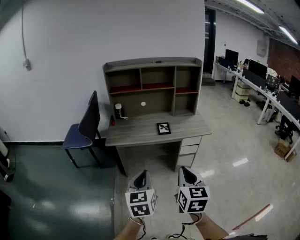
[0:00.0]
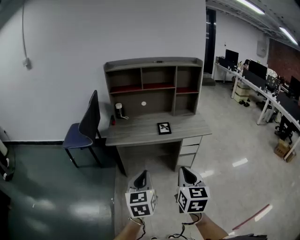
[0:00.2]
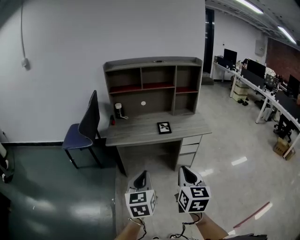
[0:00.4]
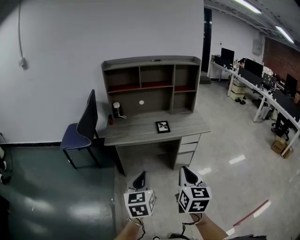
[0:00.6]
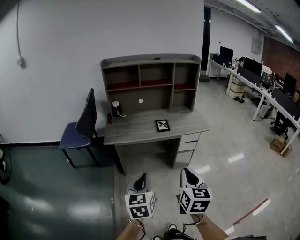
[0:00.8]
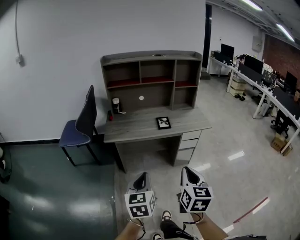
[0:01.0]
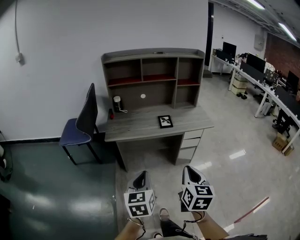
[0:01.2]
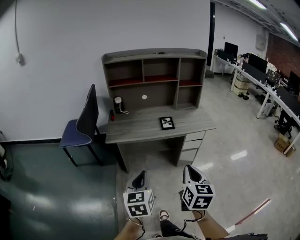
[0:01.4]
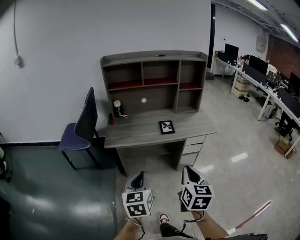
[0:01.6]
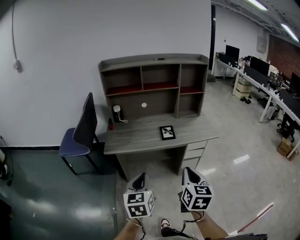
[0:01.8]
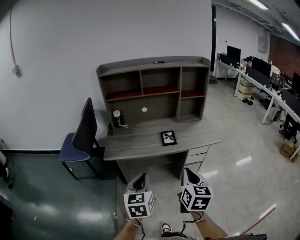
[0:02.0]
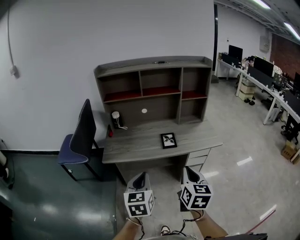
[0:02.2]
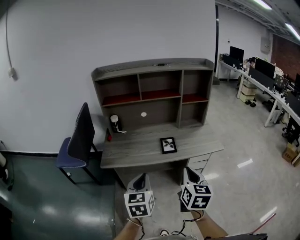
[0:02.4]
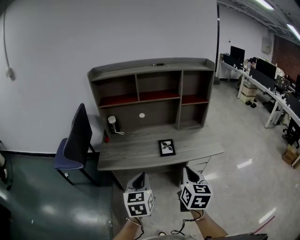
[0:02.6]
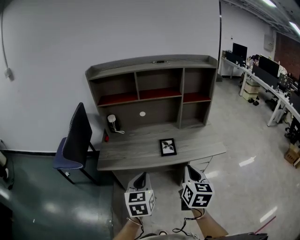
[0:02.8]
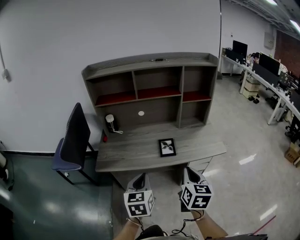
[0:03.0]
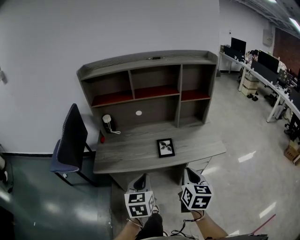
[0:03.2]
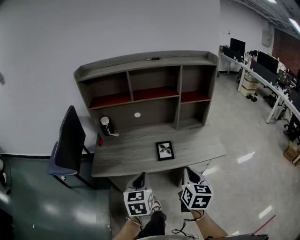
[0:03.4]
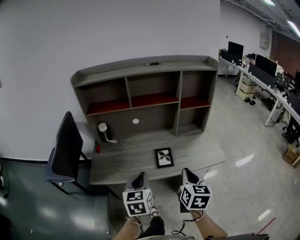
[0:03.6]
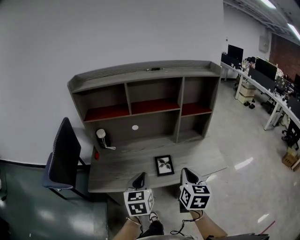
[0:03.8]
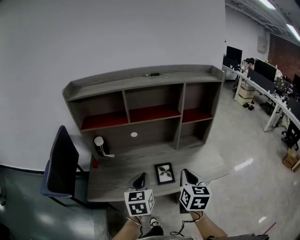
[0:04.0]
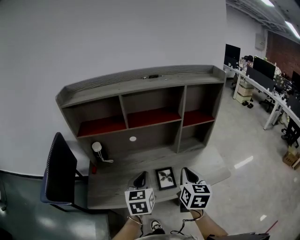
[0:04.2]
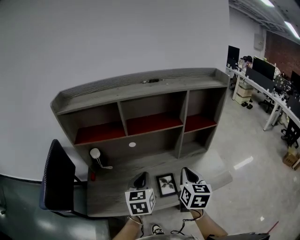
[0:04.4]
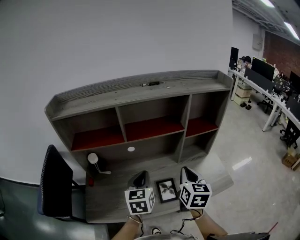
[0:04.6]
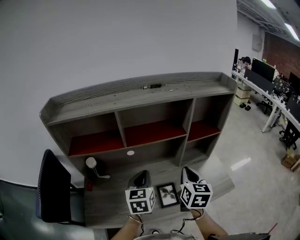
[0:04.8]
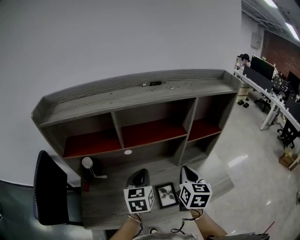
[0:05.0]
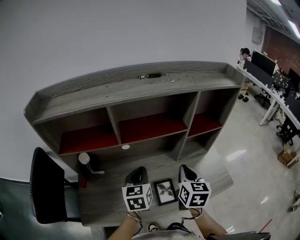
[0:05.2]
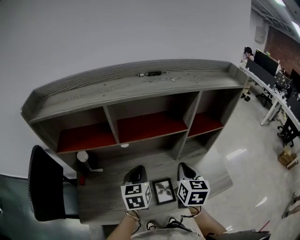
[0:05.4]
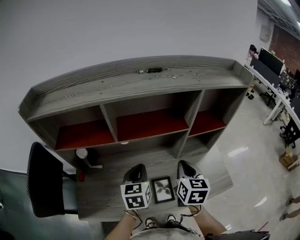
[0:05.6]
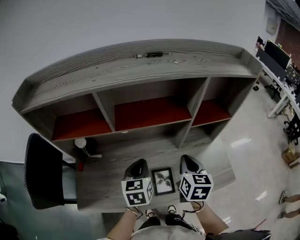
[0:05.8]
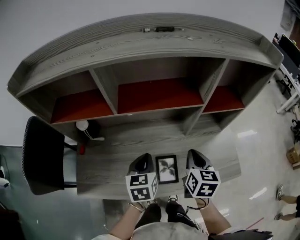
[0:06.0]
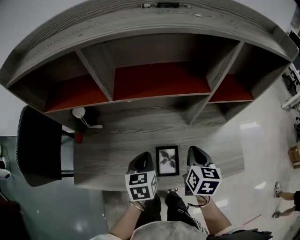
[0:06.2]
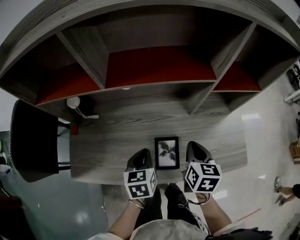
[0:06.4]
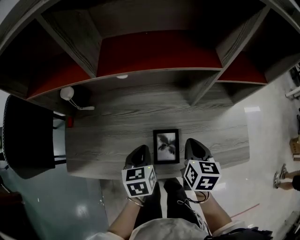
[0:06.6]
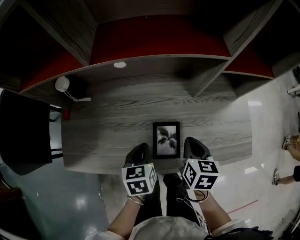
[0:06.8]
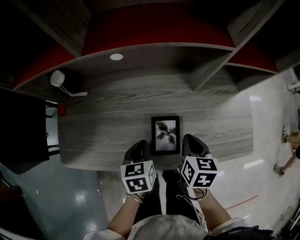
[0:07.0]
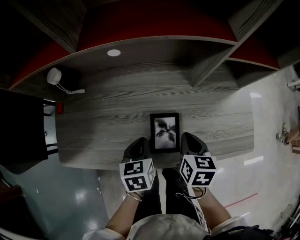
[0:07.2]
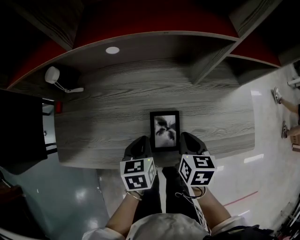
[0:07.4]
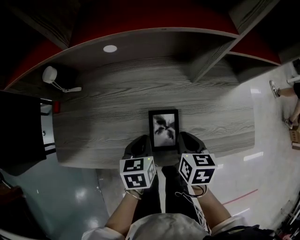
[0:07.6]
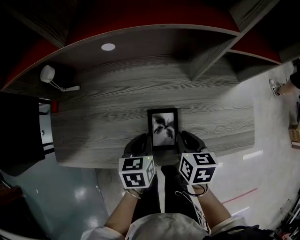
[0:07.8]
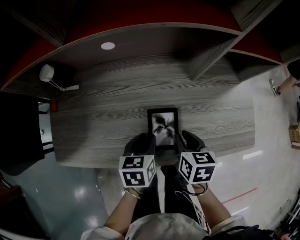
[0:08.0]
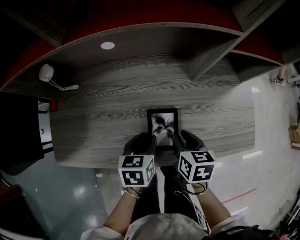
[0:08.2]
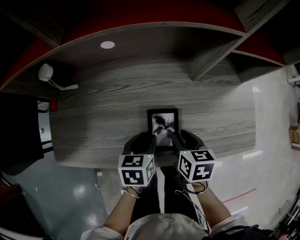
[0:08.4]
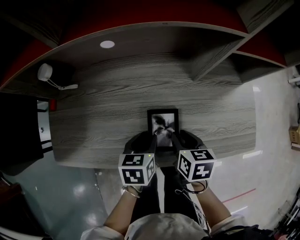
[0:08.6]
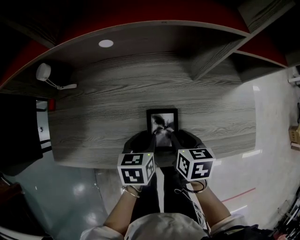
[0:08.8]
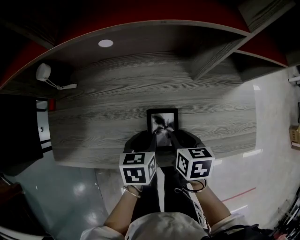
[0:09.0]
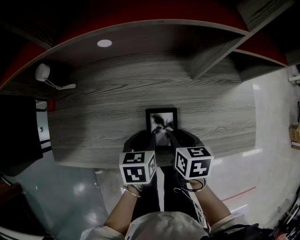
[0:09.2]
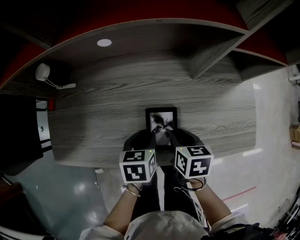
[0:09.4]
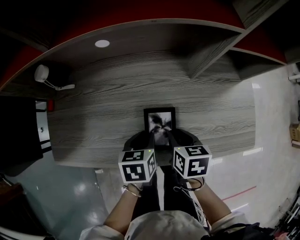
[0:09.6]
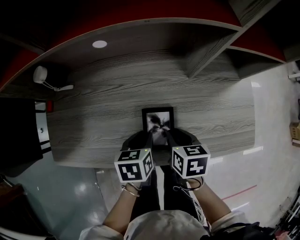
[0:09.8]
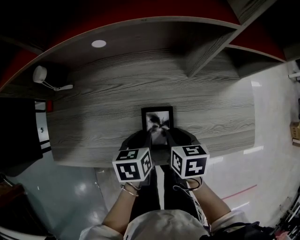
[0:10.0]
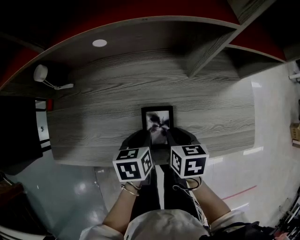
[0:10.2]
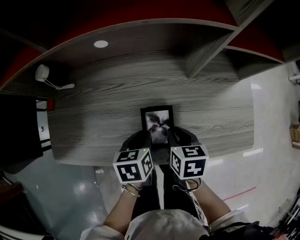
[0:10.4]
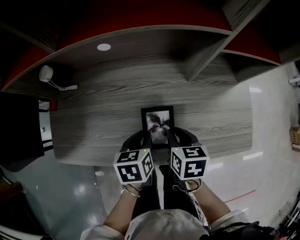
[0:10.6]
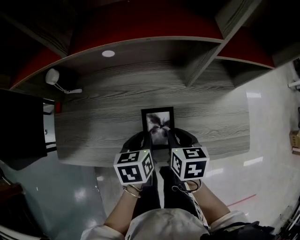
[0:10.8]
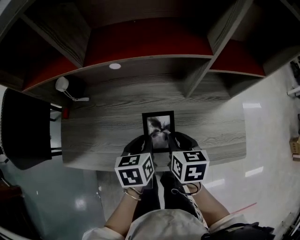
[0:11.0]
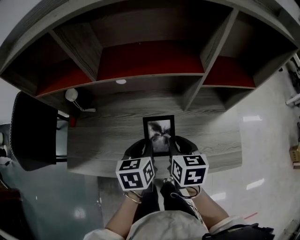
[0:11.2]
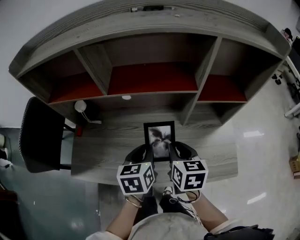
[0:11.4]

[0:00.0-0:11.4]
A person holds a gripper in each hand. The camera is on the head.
0:00.0 to 0:01.4: The right gripper shifts by some 5 cm. Meanwhile the left gripper moves to the left, some 5 cm.
0:01.4 to 0:02.8: The grippers both shift forward by some 25 cm.
0:02.8 to 0:04.2: The grippers both shift forward by some 25 cm.
0:04.2 to 0:05.6: Both grippers move forward, approximately 15 cm.
0:05.6 to 0:07.2: The left gripper goes about 25 cm downward and backward, and rotates roughly 30 degrees; the right gripper heads downward, covering roughly 25 cm, and changes its angle by approximately 30 degrees.
0:07.2 to 0:08.6: The left gripper opens; the right gripper opens its fingers.
0:08.6 to 0:10.0: The grippers stay close to where they were, moving slightly.
0:10.0 to 0:11.4: Both grippers travel together upward, some 20 cm. The left gripper swivels about 20 degrees, while the right gripper swivels some 20 degrees.

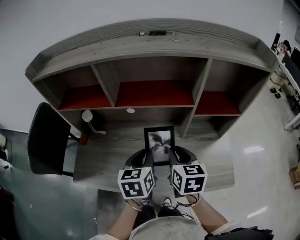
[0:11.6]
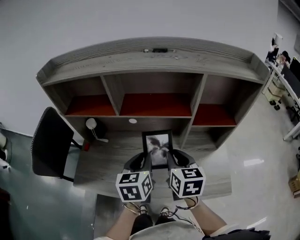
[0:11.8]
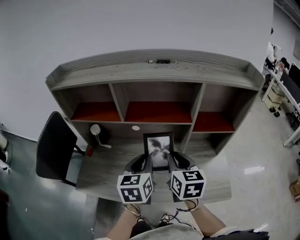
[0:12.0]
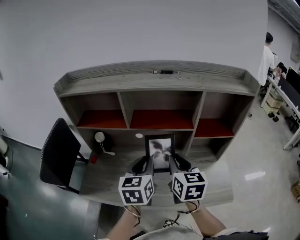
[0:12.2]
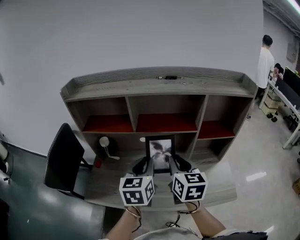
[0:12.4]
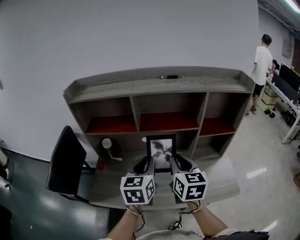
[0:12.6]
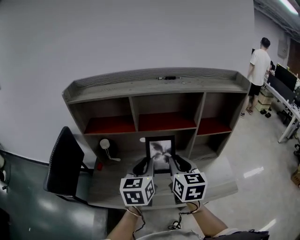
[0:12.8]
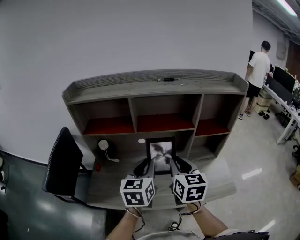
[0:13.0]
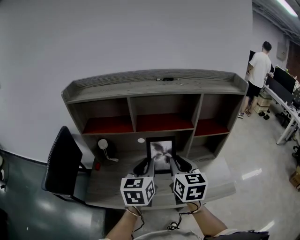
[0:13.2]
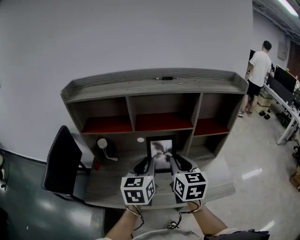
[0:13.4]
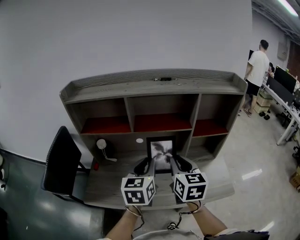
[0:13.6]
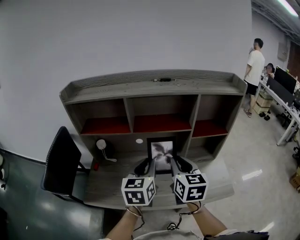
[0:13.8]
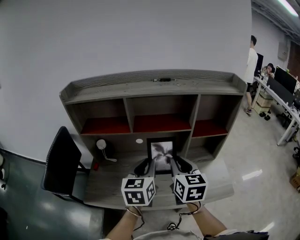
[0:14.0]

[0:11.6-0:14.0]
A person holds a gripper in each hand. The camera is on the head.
0:11.6 to 0:12.8: The two grippers go roughly 15 cm upward and to the left.
0:12.8 to 0:14.0: The grippers move only a little.

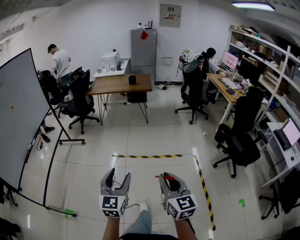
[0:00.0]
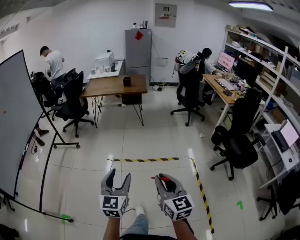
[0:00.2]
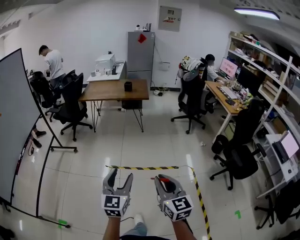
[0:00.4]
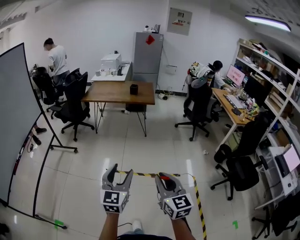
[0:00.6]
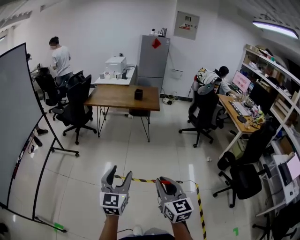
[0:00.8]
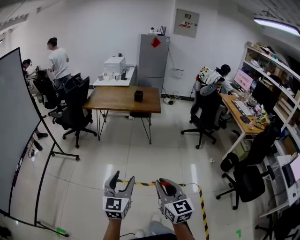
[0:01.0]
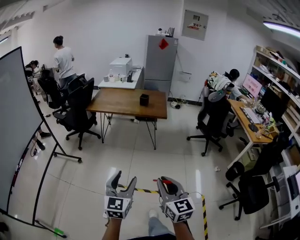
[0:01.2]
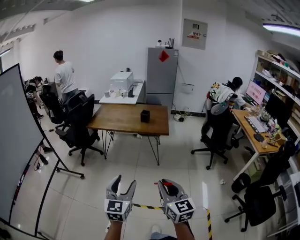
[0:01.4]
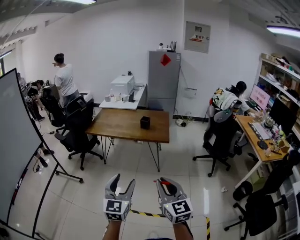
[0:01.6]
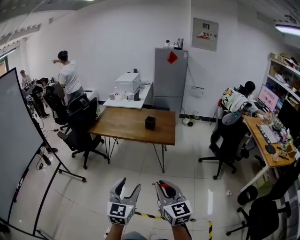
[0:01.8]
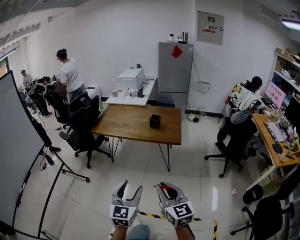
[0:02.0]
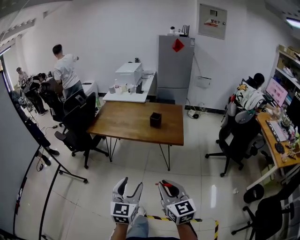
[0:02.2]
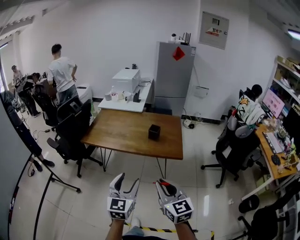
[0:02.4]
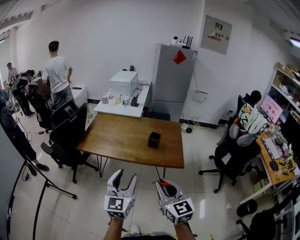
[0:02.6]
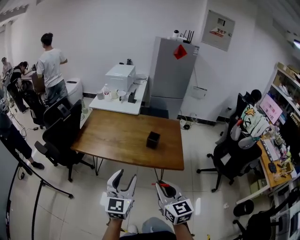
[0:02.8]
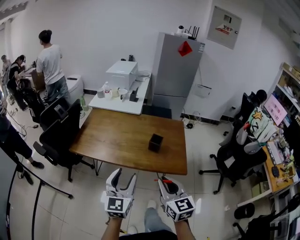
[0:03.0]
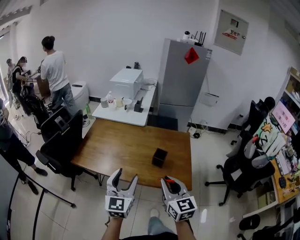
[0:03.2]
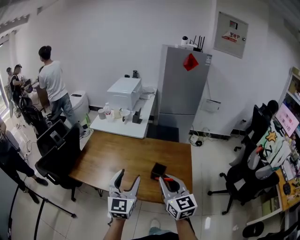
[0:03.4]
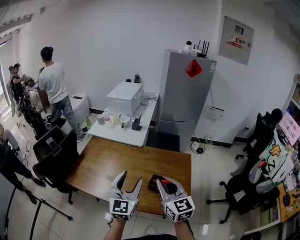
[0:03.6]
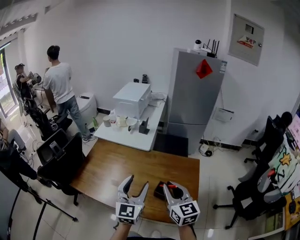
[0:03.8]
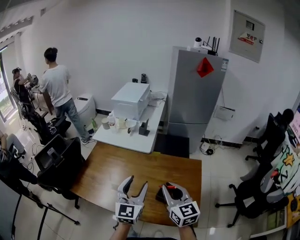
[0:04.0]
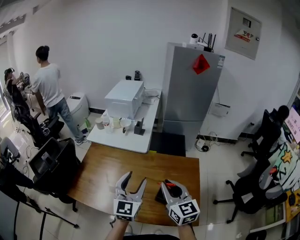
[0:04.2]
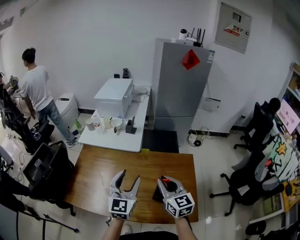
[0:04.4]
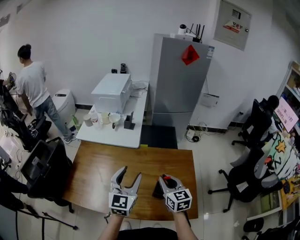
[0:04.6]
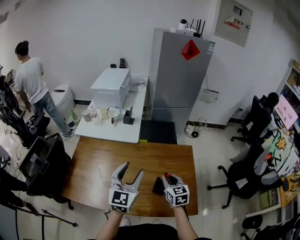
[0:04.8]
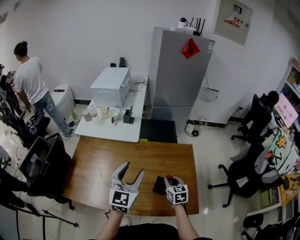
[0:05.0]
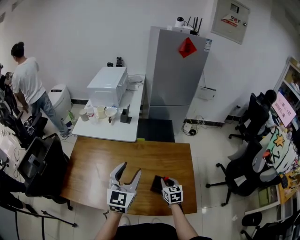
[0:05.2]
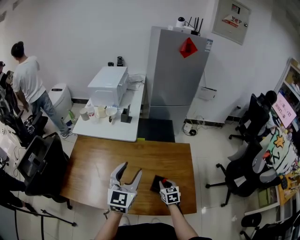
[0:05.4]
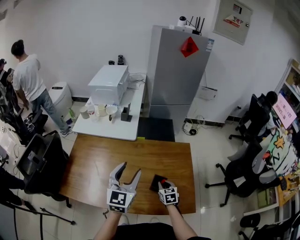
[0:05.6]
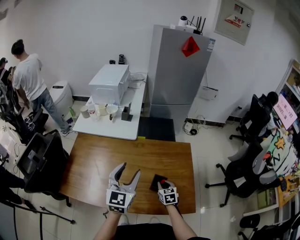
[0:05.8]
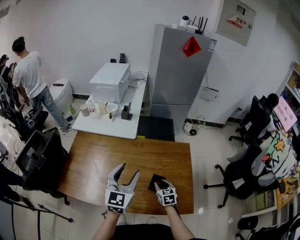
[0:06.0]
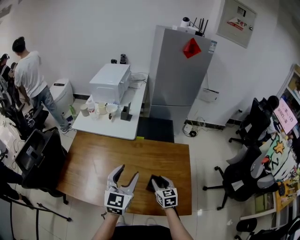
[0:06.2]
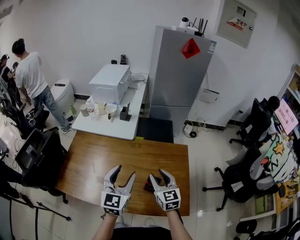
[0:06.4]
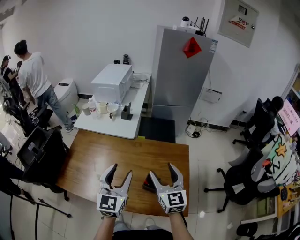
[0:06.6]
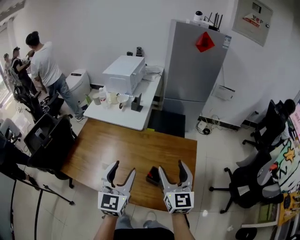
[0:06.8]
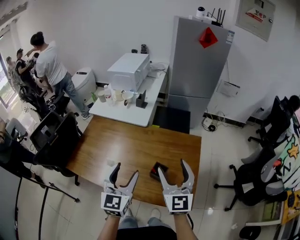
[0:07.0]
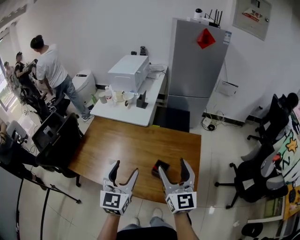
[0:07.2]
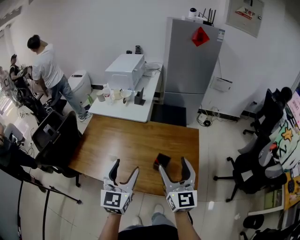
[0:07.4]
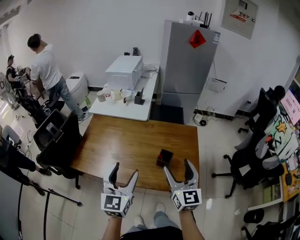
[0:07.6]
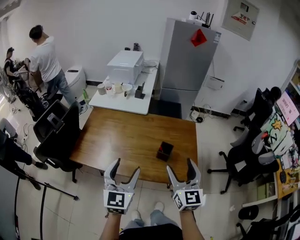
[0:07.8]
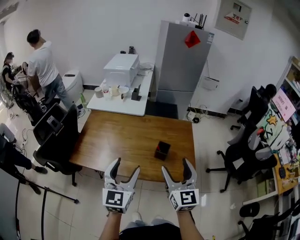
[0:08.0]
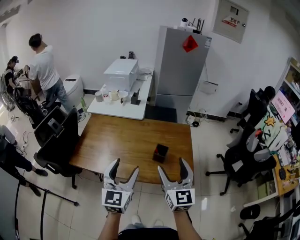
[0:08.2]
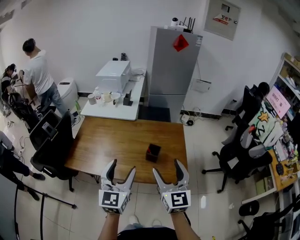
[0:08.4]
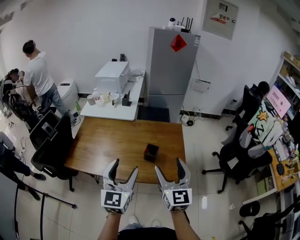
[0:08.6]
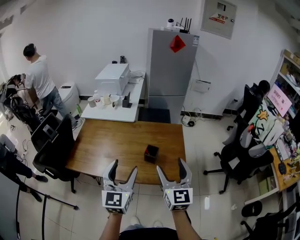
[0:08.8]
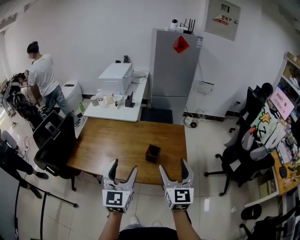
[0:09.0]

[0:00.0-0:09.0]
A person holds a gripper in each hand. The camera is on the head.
0:00.0 to 0:01.6: The two grippers travel together, forward, approximately 60 cm.
0:01.6 to 0:03.0: The two grippers travel together, forward, some 50 cm.
0:03.0 to 0:04.4: Both grippers move forward, some 40 cm.
0:04.4 to 0:06.0: The right gripper is displaced downward by about 25 cm, and changes its angle by some 30 degrees.
0:06.0 to 0:07.6: The right gripper moves upward and backward, about 35 cm, tips its fingers upward by about 40 degrees, and opens up, while the left gripper shifts about 20 cm backward.
0:07.6 to 0:09.0: The left gripper heads to the right and backward, covering about 10 cm, while the right gripper travels backward and to the right by roughly 10 cm.

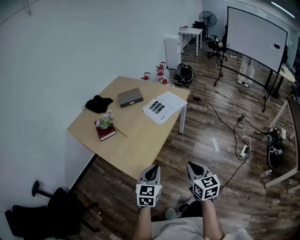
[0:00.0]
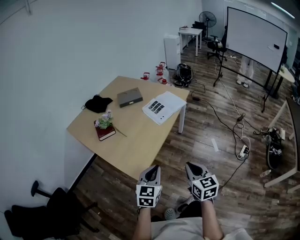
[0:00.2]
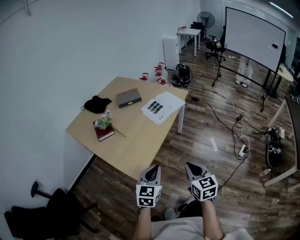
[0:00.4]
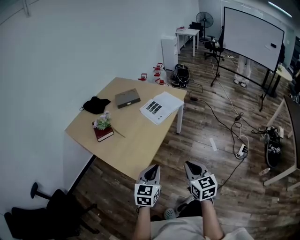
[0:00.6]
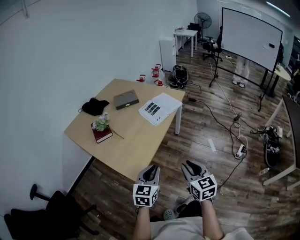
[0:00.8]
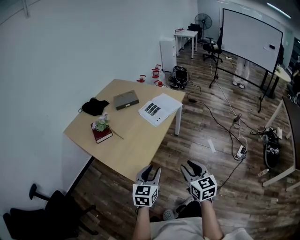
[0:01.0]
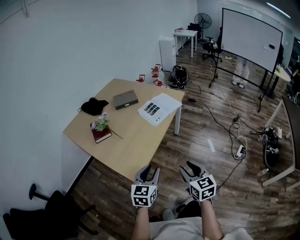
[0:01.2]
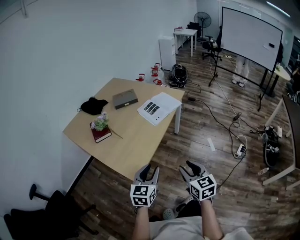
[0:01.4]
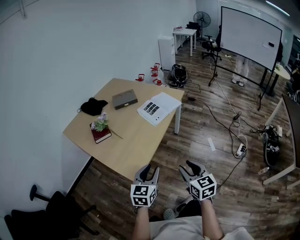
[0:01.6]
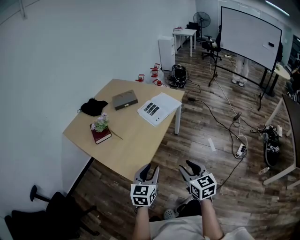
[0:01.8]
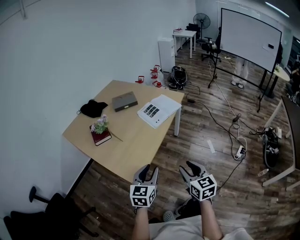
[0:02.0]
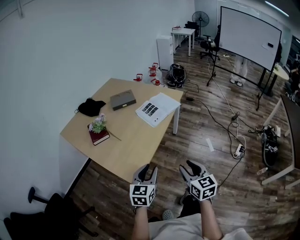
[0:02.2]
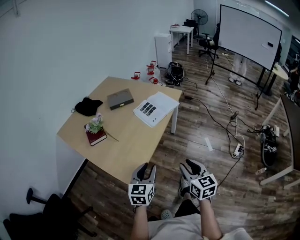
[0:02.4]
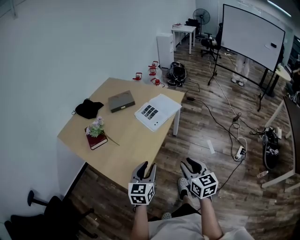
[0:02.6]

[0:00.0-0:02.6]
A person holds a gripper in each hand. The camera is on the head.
0:00.0 to 0:01.2: The right gripper opens. The left gripper opens its fingers.
0:01.2 to 0:02.6: The two grippers go approximately 10 cm forward.
